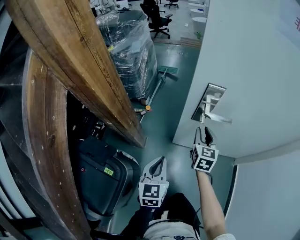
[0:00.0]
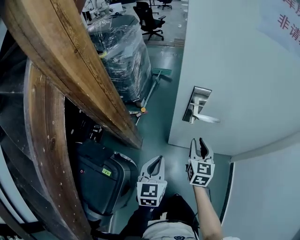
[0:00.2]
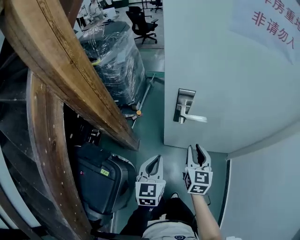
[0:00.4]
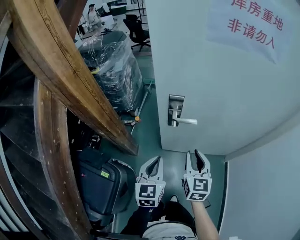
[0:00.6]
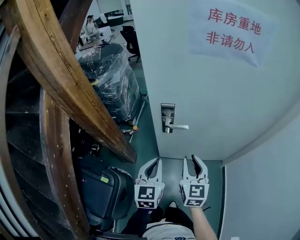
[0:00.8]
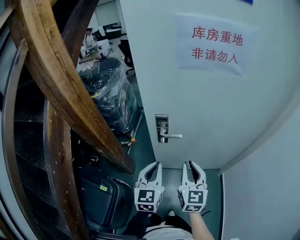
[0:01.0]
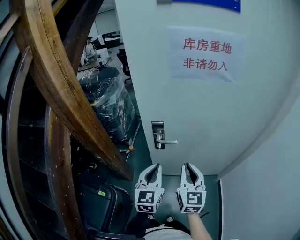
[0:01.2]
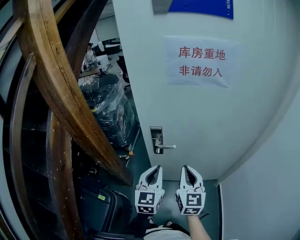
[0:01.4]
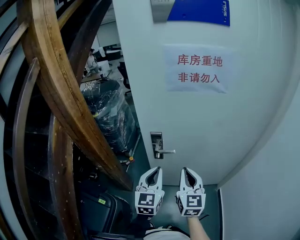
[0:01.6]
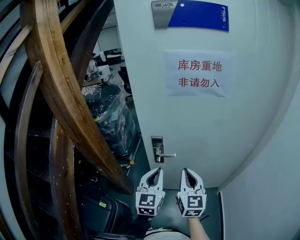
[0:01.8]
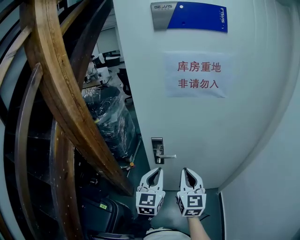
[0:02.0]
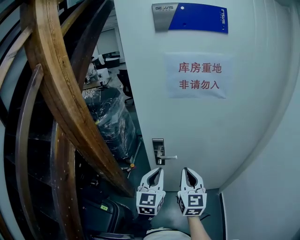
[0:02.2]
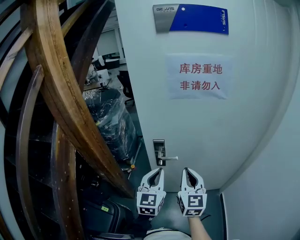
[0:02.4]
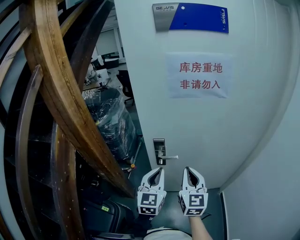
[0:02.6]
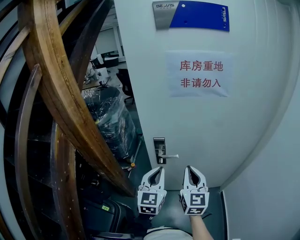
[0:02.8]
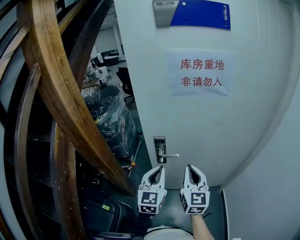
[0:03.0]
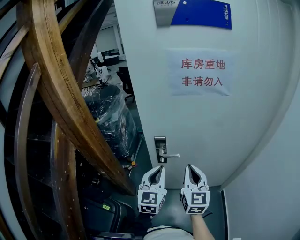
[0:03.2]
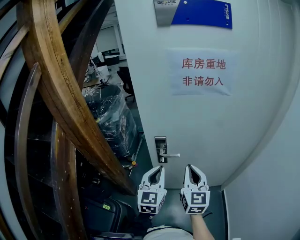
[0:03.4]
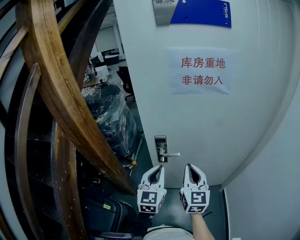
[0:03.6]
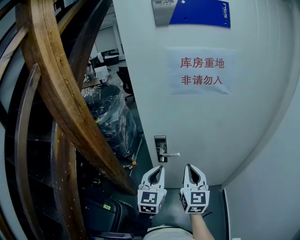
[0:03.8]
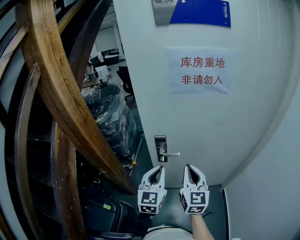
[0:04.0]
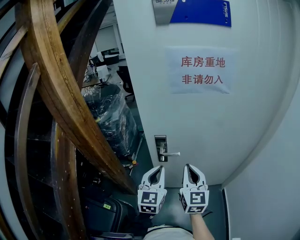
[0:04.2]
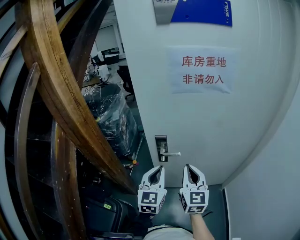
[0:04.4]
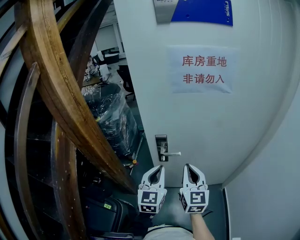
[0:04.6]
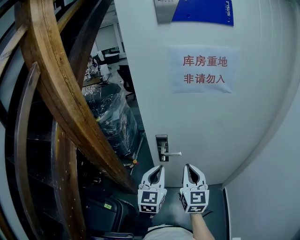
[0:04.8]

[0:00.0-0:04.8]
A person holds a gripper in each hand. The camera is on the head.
0.0 to 1.6 s: The right gripper goes approximately 35 cm upward, backward and to the right, and closes its fingers; the left gripper goes approximately 30 cm upward and to the right, and rotates approximately 20 degrees.
1.6 to 4.8 s: The grippers make only small movements.

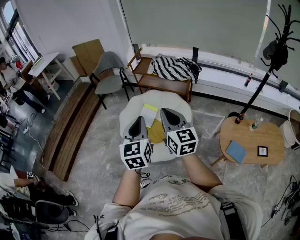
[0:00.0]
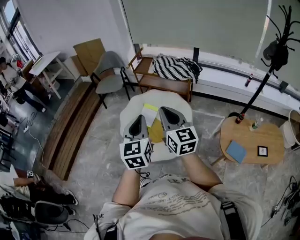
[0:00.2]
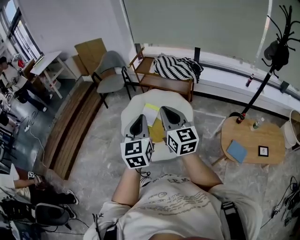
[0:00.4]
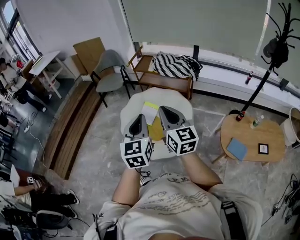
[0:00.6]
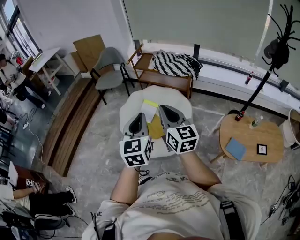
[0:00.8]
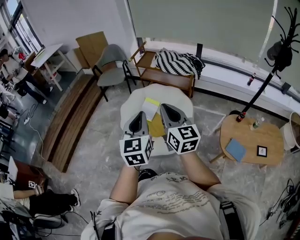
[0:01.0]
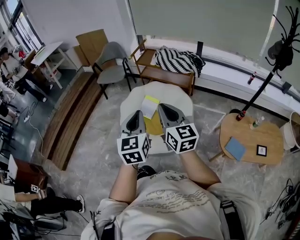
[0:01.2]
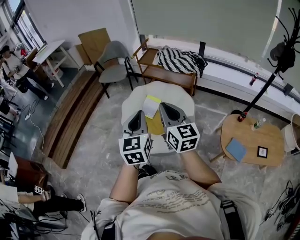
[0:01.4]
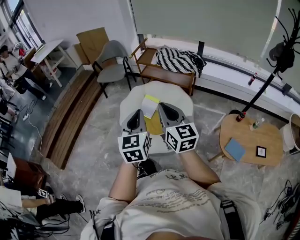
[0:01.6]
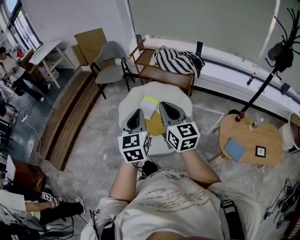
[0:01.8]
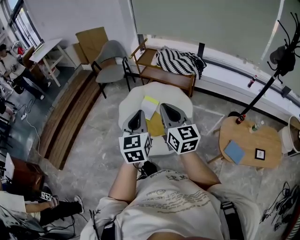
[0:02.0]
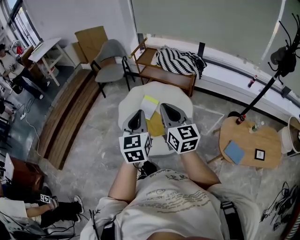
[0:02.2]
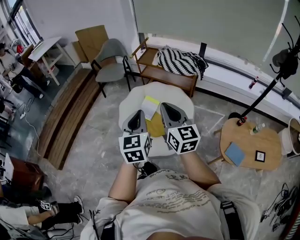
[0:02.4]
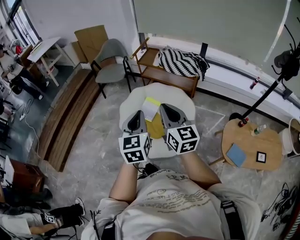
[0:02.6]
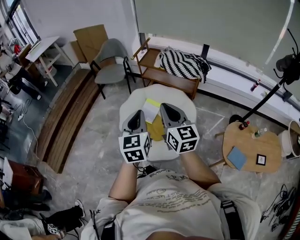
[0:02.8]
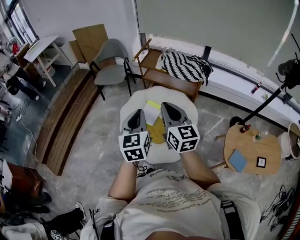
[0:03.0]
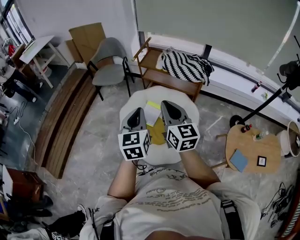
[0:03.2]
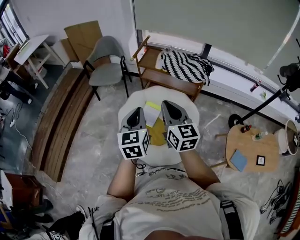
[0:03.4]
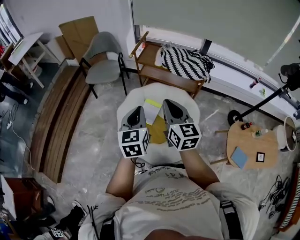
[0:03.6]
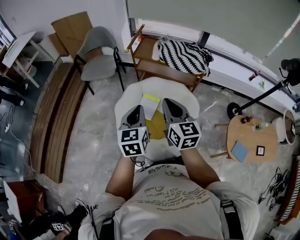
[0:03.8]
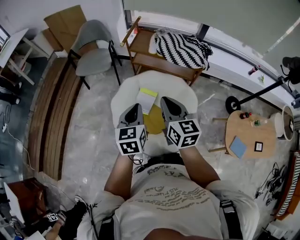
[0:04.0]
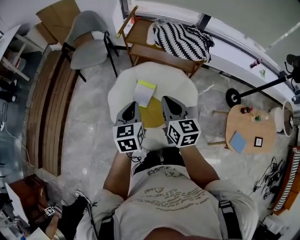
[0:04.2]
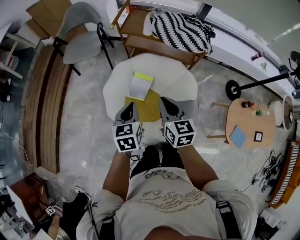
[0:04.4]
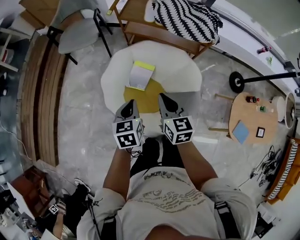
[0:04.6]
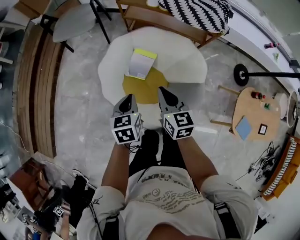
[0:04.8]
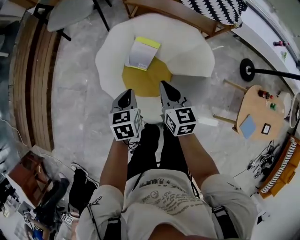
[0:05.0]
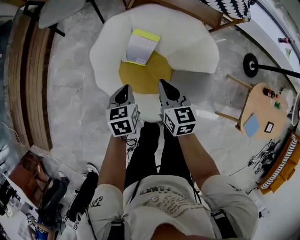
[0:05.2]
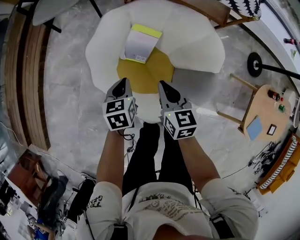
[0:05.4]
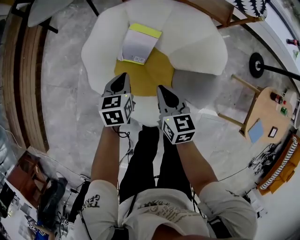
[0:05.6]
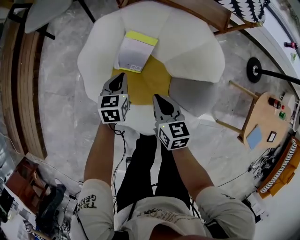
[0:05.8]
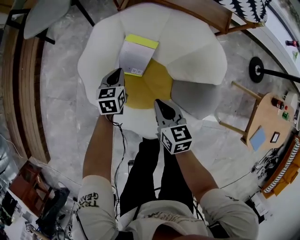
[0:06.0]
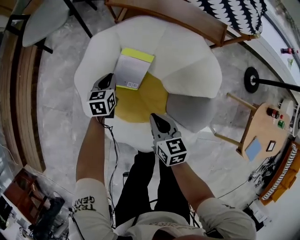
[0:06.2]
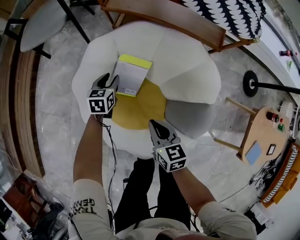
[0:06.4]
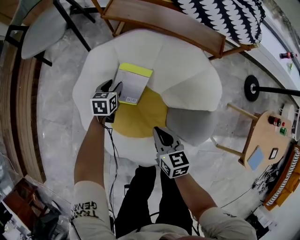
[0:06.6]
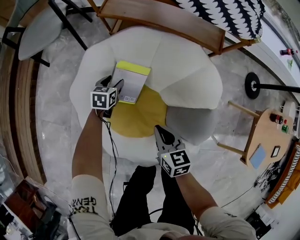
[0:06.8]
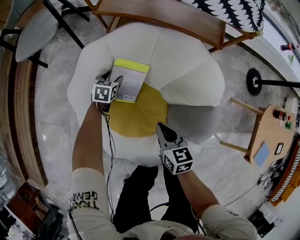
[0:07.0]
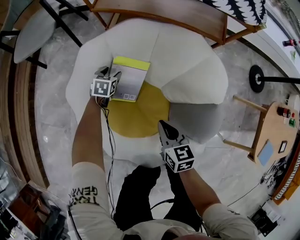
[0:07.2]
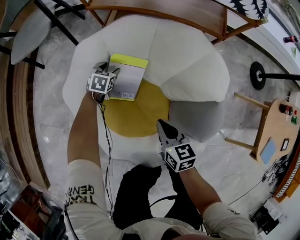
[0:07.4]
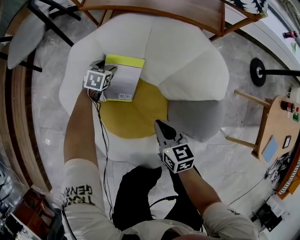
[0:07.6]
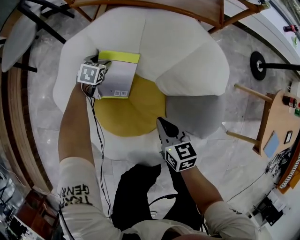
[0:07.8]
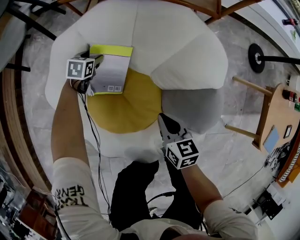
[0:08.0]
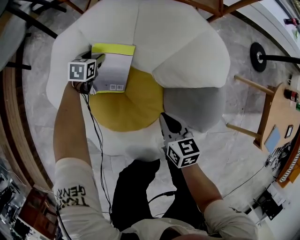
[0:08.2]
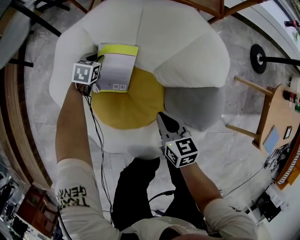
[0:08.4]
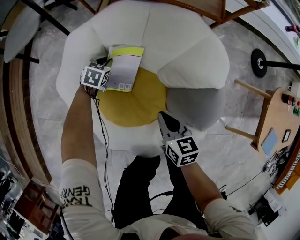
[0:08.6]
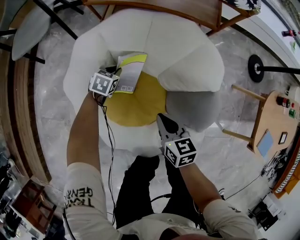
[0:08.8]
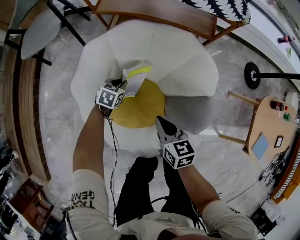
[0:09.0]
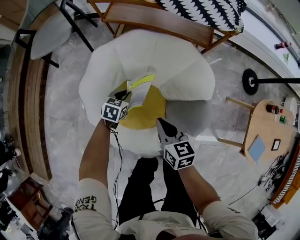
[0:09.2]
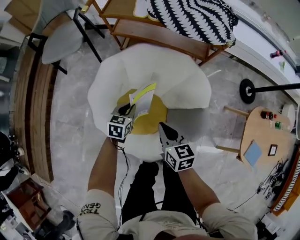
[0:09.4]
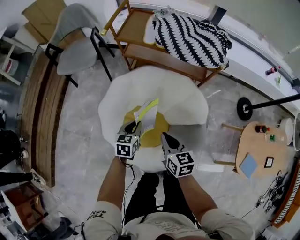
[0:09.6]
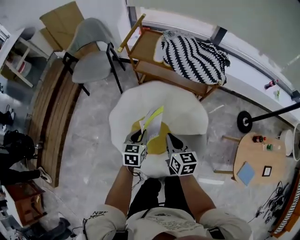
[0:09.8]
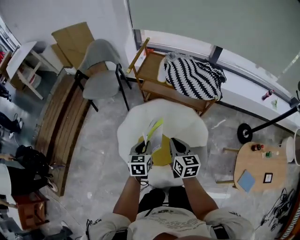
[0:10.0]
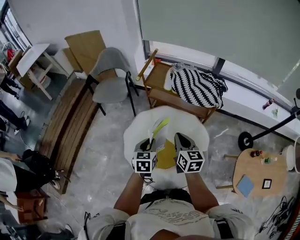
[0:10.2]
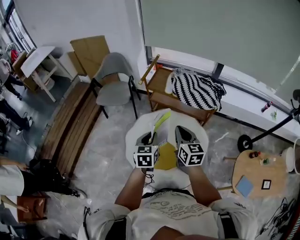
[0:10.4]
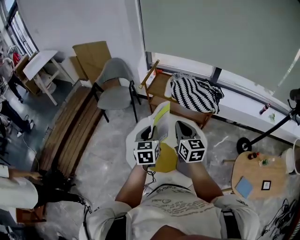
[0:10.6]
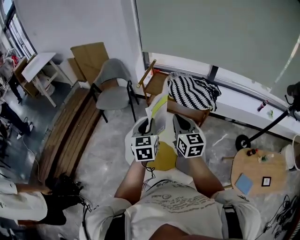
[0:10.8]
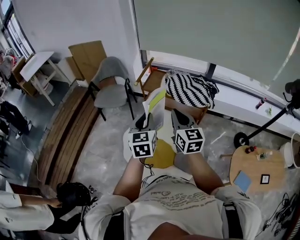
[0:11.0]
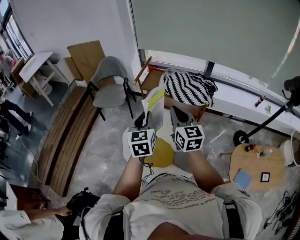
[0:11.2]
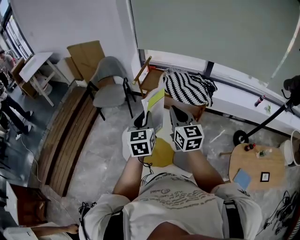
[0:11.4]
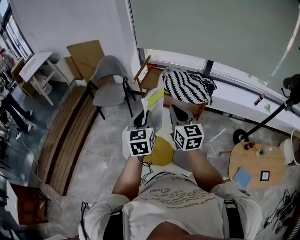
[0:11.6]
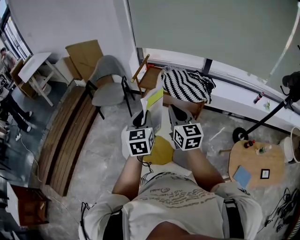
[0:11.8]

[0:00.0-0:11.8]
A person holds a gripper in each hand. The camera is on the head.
0.0 to 1.4 s: The grippers stay close to where they were, moving slightly.
1.4 to 3.0 s: The grippers both shift forward by some 15 cm.
3.0 to 4.4 s: Both grippers travel together downward and forward, some 25 cm. The right gripper changes its angle by roughly 20 degrees, while the left gripper turns by approximately 30 degrees.
4.4 to 6.0 s: The grippers both shift downward by approximately 40 cm.
6.0 to 7.4 s: The right gripper travels downward by some 10 cm; the left gripper is displaced downward and forward by roughly 20 cm, swivels about 30 degrees, and opens up.
7.4 to 8.8 s: The left gripper travels backward and to the right by approximately 10 cm, and closes.
8.8 to 10.4 s: The two grippers go roughly 60 cm upward. The right gripper turns by roughly 30 degrees. The left gripper swivels roughly 50 degrees.
10.4 to 11.8 s: The grippers both shift upward by approximately 10 cm.

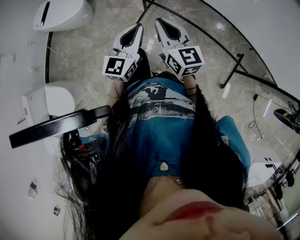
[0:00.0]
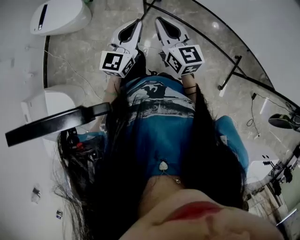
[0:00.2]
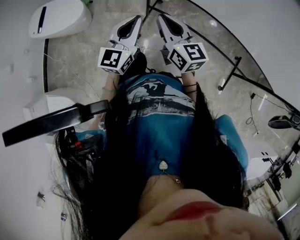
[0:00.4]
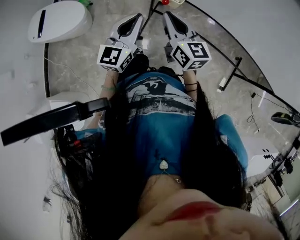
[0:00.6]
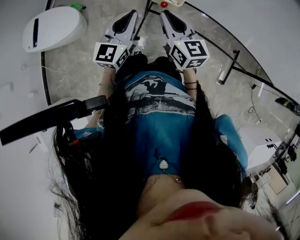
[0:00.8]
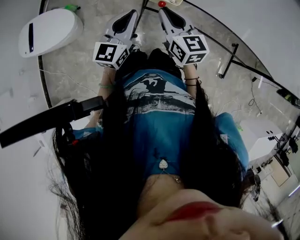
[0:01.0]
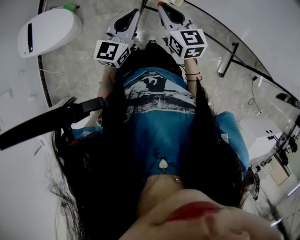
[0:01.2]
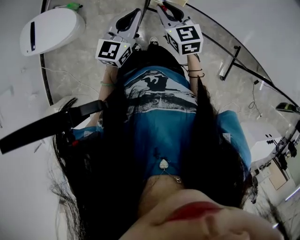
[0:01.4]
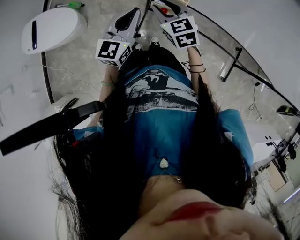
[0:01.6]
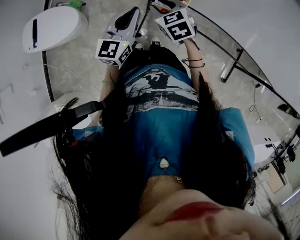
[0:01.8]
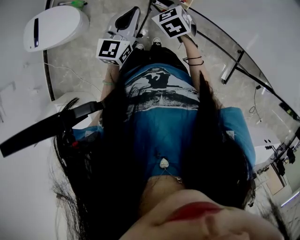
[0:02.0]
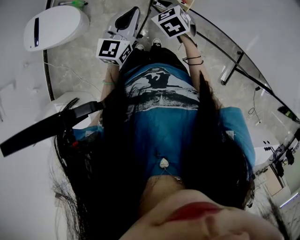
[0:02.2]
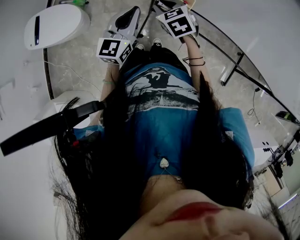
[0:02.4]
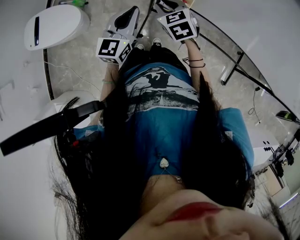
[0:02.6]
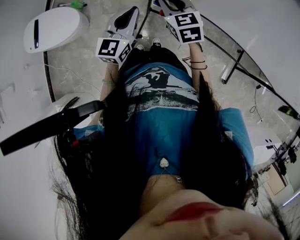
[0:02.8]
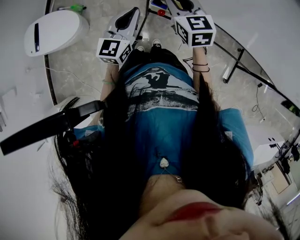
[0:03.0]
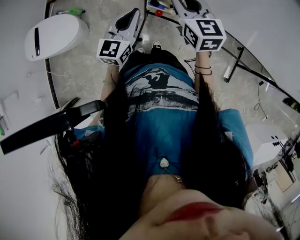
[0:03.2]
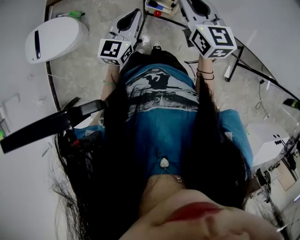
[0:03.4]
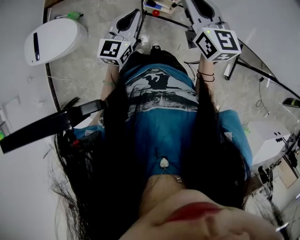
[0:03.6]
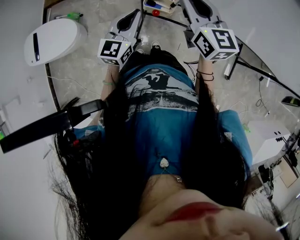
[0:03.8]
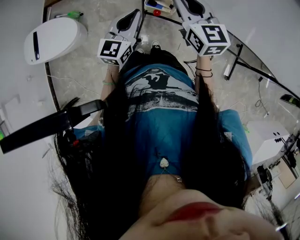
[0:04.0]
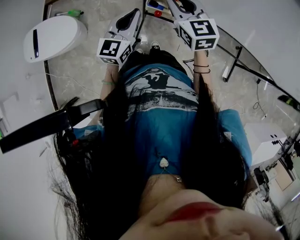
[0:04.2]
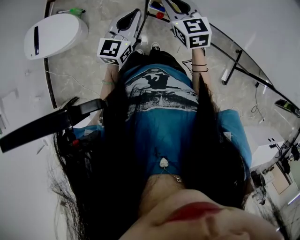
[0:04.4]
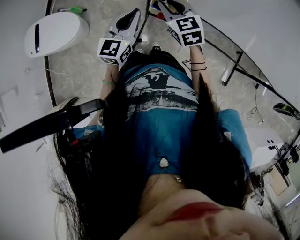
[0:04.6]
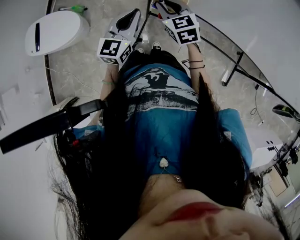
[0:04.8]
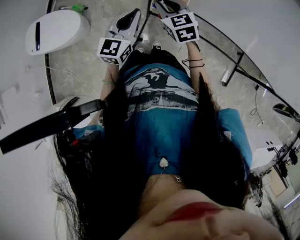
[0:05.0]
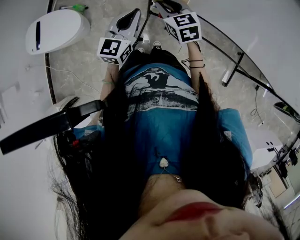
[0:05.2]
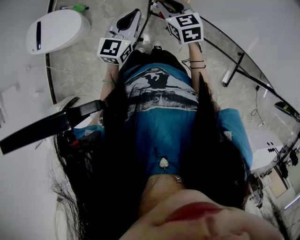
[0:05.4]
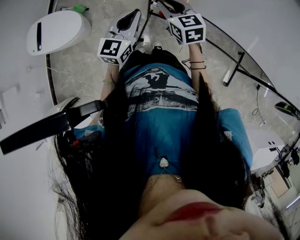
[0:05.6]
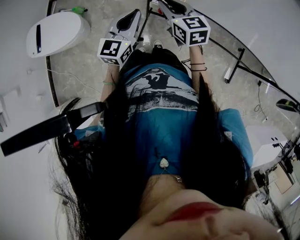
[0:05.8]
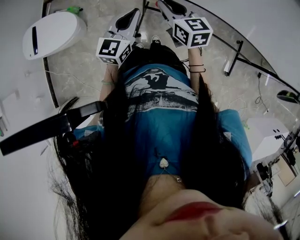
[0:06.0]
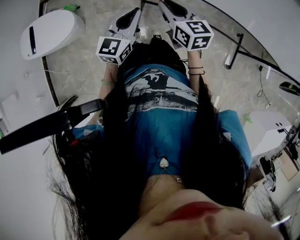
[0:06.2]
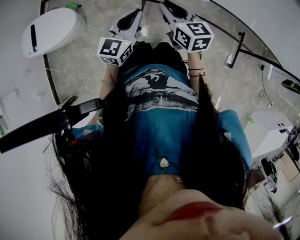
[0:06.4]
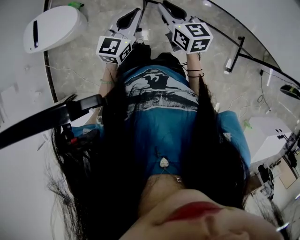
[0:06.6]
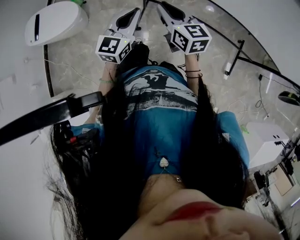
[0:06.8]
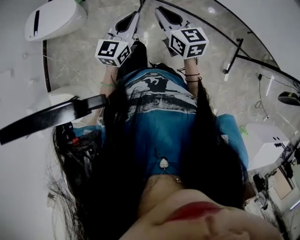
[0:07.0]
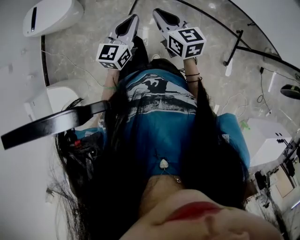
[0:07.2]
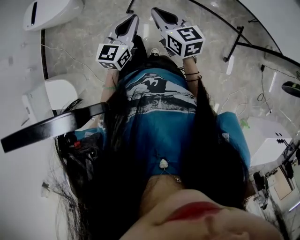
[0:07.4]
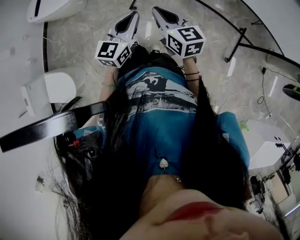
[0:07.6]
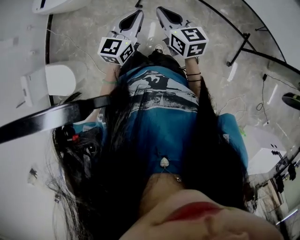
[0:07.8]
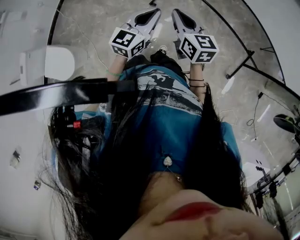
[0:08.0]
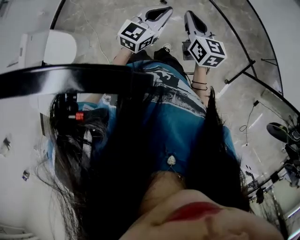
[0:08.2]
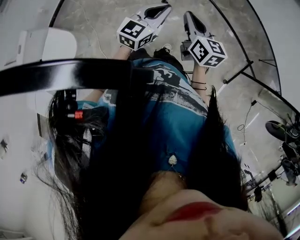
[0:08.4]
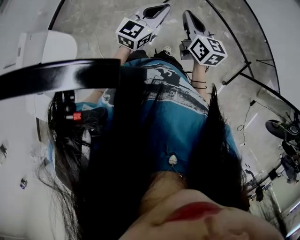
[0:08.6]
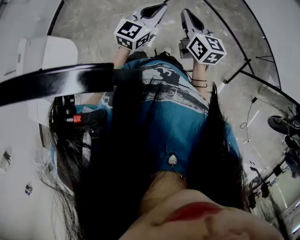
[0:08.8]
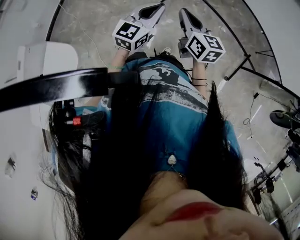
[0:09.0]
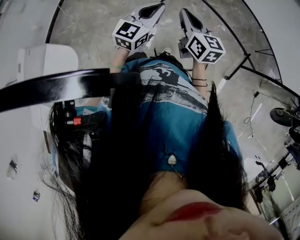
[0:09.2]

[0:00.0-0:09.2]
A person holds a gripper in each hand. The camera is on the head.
0.0 to 1.6 s: Both grippers move forward and to the left, some 30 cm. The right gripper rotates approximately 30 degrees, and opens its fingers.
1.6 to 3.0 s: The right gripper goes roughly 5 cm upward.
3.0 to 4.6 s: The right gripper goes upward and returns, some 10 cm each way.
4.6 to 6.2 s: The grippers both shift backward by about 10 cm. The right gripper rotates roughly 20 degrees.
6.2 to 7.6 s: The grippers both shift backward by approximately 35 cm.
7.6 to 9.2 s: Both grippers move to the left, approximately 15 cm.
